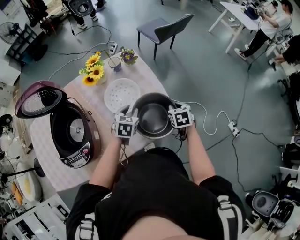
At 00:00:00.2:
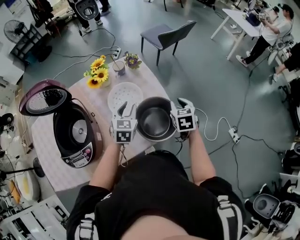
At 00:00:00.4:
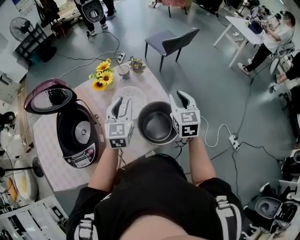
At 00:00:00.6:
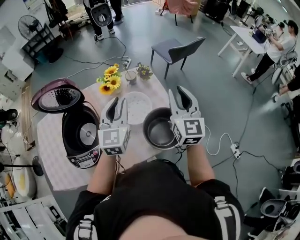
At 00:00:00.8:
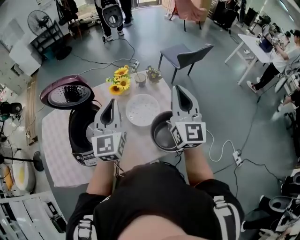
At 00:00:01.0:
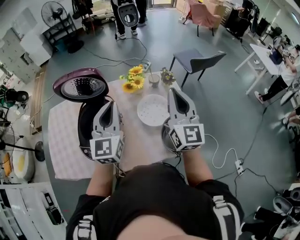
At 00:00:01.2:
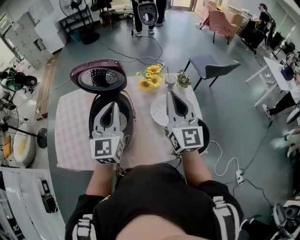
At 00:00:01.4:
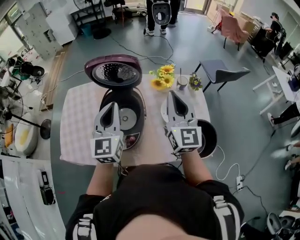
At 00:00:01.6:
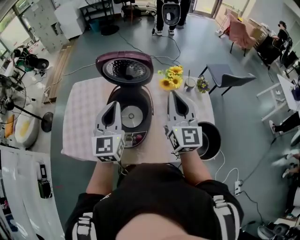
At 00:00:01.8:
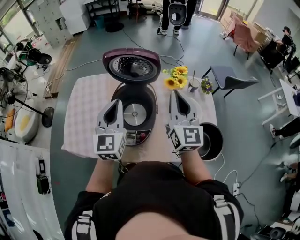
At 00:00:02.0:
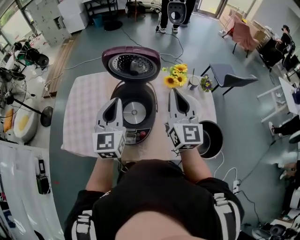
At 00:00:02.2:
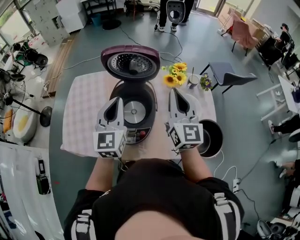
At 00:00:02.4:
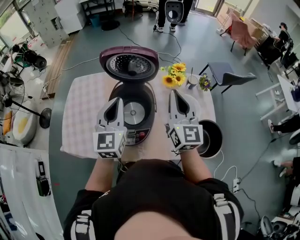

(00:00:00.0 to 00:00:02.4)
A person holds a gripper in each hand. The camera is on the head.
00:00:00.0 - 00:00:01.2: Both grippers move upward, some 35 cm. The left gripper points its fingers about 50 degrees further upward; the right gripper angles its fingers upward, by about 70 degrees.
00:00:01.2 - 00:00:02.4: The grippers both shift to the left by roughly 10 cm.

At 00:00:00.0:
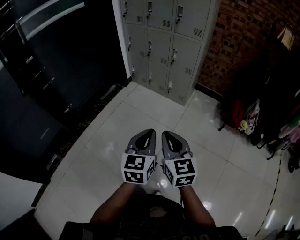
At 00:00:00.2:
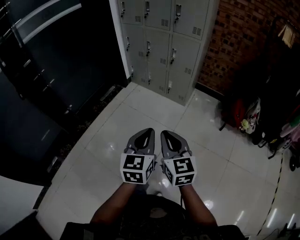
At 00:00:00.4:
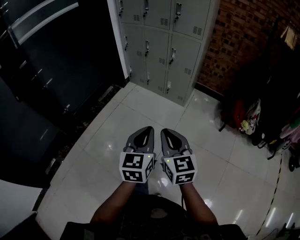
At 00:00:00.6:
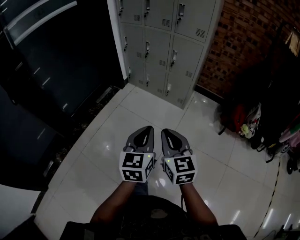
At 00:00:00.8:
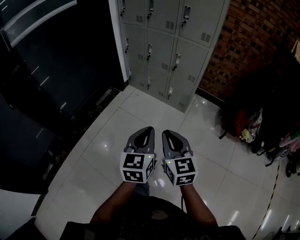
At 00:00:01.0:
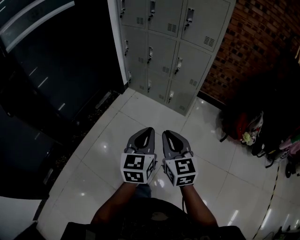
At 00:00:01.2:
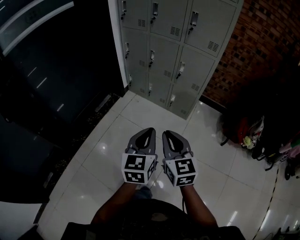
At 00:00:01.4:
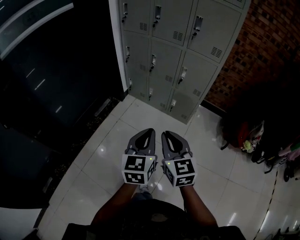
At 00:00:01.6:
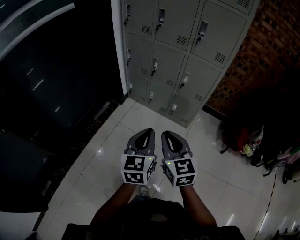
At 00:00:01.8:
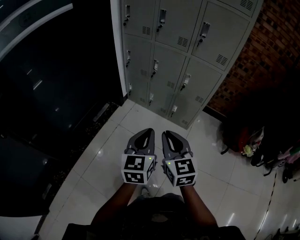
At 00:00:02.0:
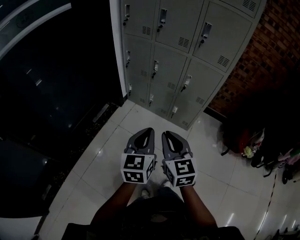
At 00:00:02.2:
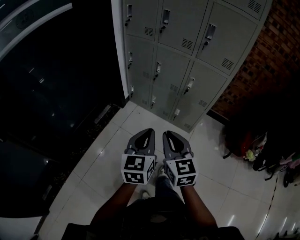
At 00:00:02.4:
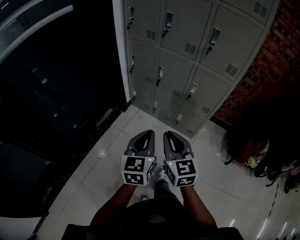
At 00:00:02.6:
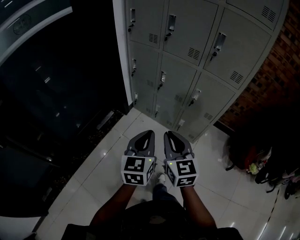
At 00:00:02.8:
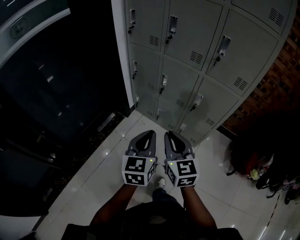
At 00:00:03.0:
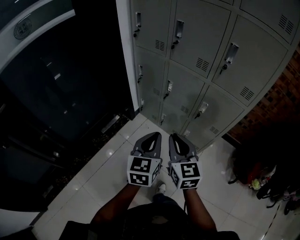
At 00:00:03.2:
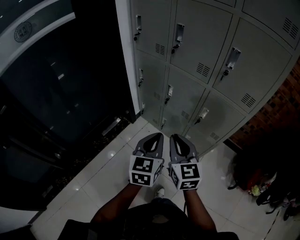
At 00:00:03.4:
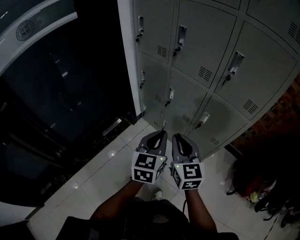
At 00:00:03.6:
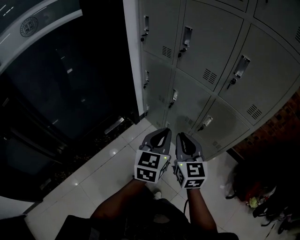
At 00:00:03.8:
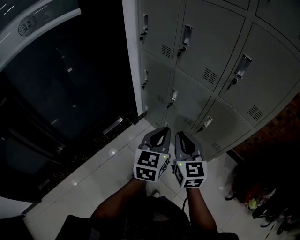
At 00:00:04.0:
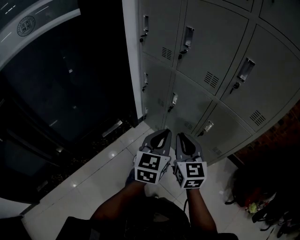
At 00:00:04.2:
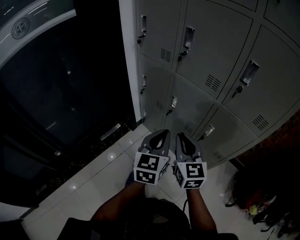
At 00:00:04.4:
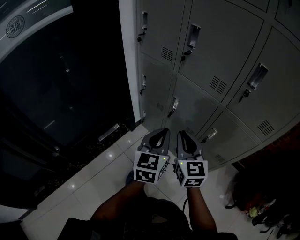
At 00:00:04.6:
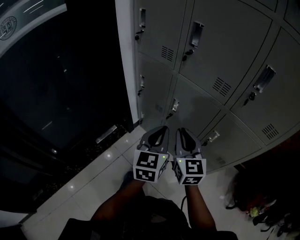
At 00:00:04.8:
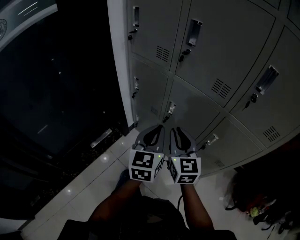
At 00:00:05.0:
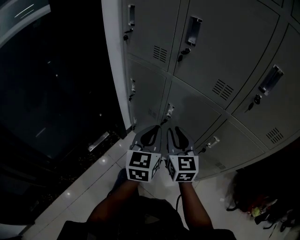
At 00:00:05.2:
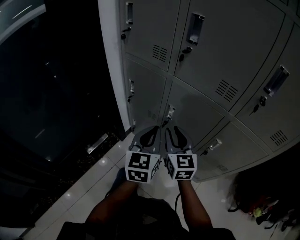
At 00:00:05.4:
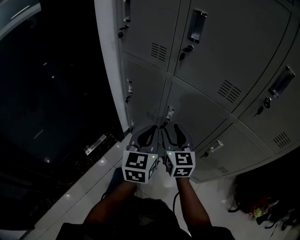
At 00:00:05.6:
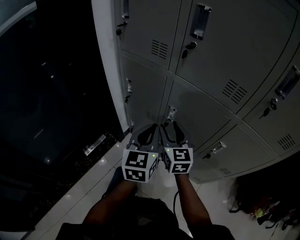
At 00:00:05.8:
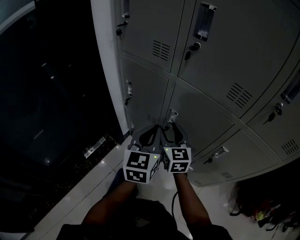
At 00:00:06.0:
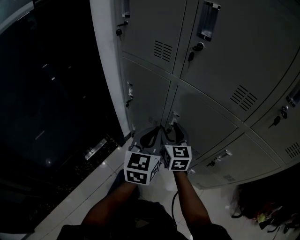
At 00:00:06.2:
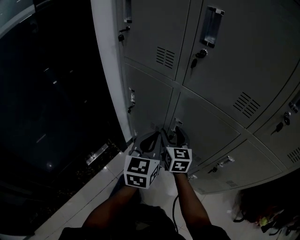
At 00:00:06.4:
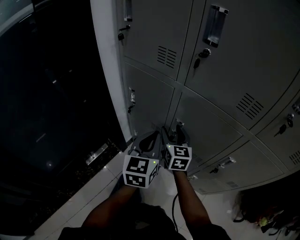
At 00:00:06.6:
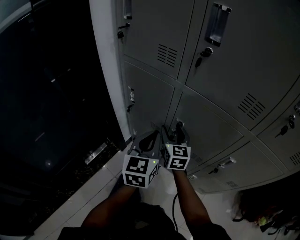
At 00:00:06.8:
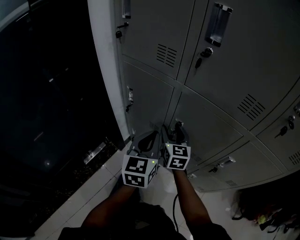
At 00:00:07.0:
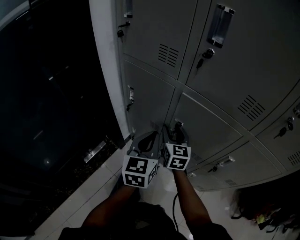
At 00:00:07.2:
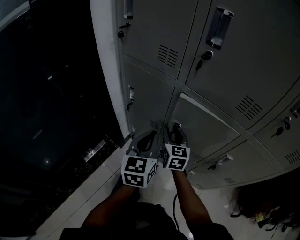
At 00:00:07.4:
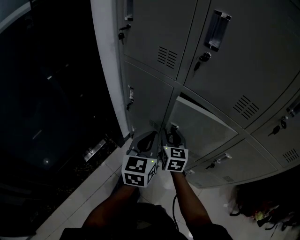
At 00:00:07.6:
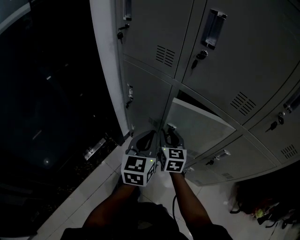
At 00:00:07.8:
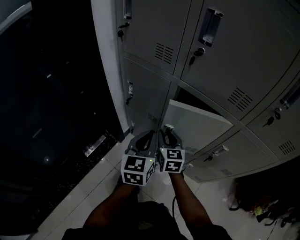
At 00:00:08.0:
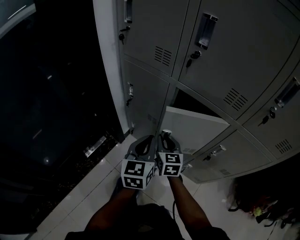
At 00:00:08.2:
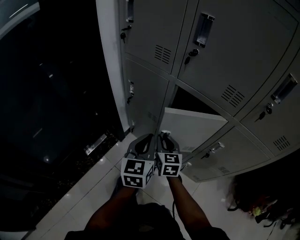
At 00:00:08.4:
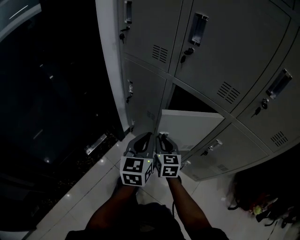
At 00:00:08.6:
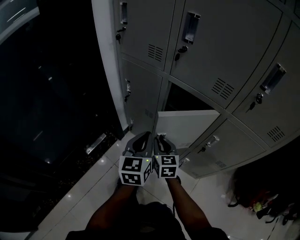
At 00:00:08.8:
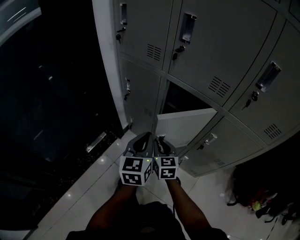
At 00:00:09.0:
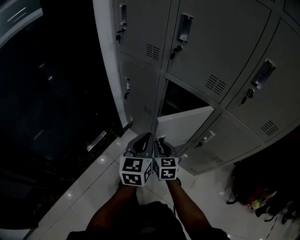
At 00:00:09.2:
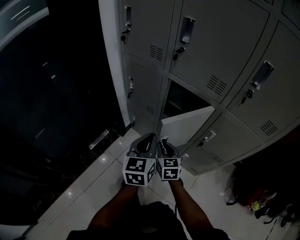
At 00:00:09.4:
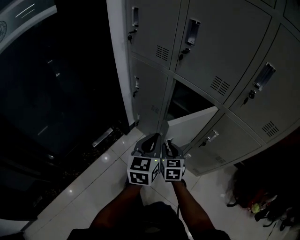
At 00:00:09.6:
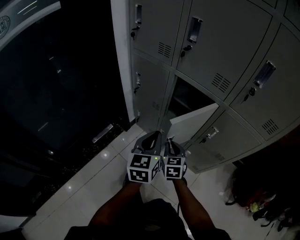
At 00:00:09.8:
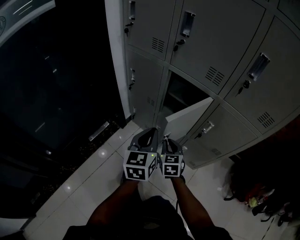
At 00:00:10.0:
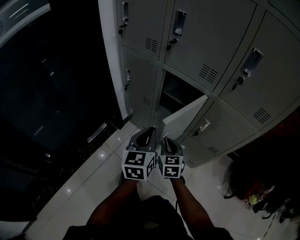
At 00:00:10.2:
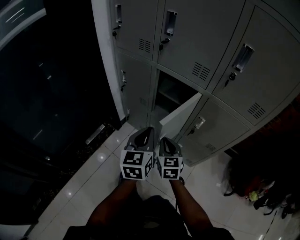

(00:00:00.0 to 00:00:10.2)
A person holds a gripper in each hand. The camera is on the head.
00:00:00.0 - 00:00:01.4: Both grippers move forward, roughly 30 cm.
00:00:01.4 - 00:00:03.0: The two grippers go approximately 30 cm forward.
00:00:03.0 - 00:00:04.4: Both grippers travel together forward, some 20 cm.
00:00:04.4 - 00:00:05.8: The two grippers go some 25 cm forward and downward. The right gripper opens.
00:00:05.8 - 00:00:07.2: The right gripper heads forward, covering about 5 cm.
00:00:07.2 - 00:00:08.8: Both grippers move backward, approximately 15 cm.
00:00:08.8 - 00:00:10.2: The right gripper travels backward and to the right by roughly 10 cm; the left gripper goes approximately 10 cm backward.

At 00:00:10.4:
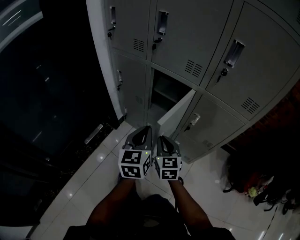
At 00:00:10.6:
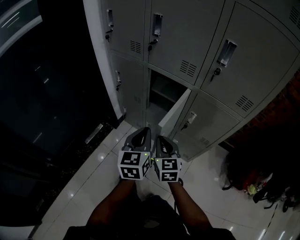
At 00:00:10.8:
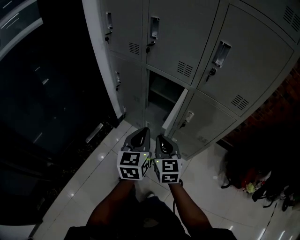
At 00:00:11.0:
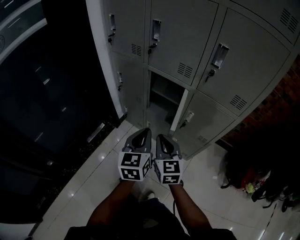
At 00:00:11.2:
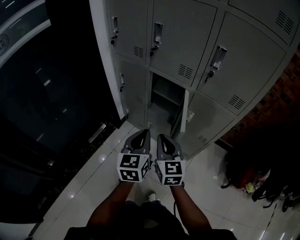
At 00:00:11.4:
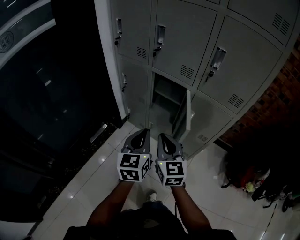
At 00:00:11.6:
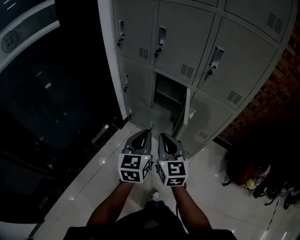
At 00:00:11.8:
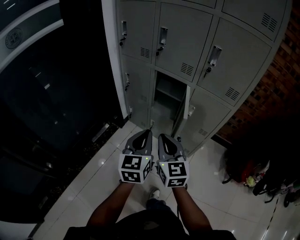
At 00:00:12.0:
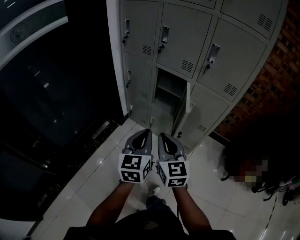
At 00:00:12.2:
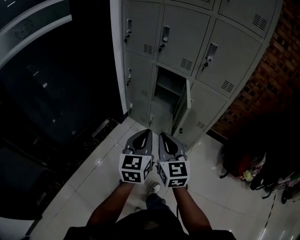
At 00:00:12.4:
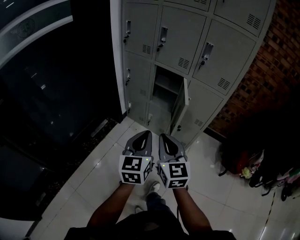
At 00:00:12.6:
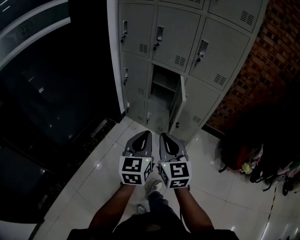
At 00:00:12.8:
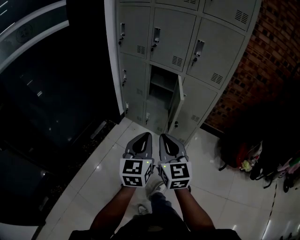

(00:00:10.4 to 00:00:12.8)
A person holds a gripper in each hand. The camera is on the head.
00:00:10.4 - 00:00:11.6: The right gripper moves upward and backward, roughly 20 cm. The left gripper travels backward and upward by some 15 cm.
00:00:11.6 - 00:00:12.8: Both grippers move backward, about 20 cm.

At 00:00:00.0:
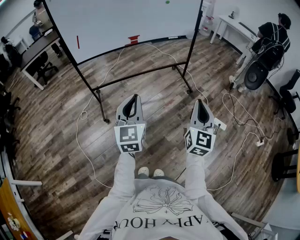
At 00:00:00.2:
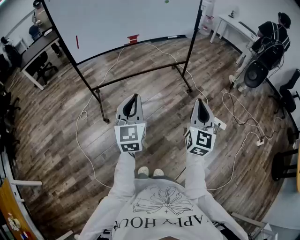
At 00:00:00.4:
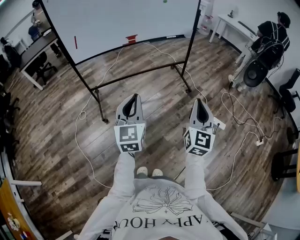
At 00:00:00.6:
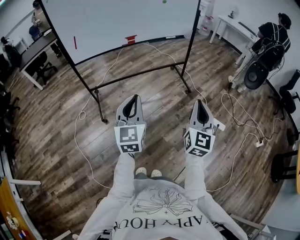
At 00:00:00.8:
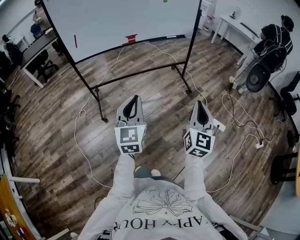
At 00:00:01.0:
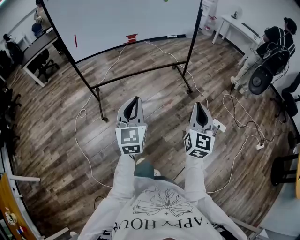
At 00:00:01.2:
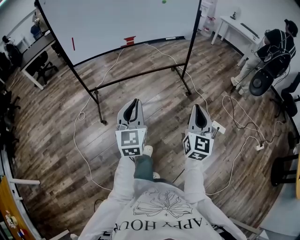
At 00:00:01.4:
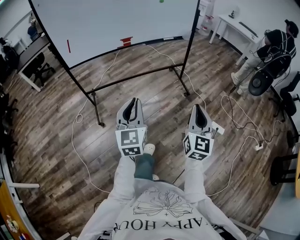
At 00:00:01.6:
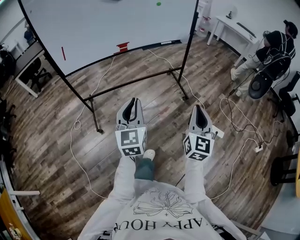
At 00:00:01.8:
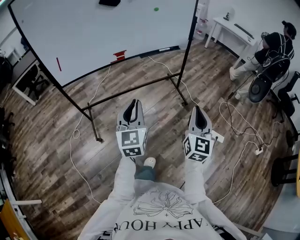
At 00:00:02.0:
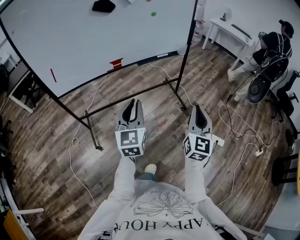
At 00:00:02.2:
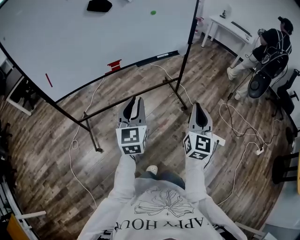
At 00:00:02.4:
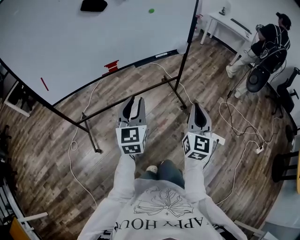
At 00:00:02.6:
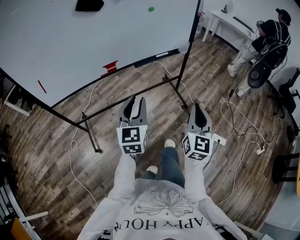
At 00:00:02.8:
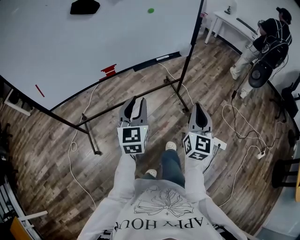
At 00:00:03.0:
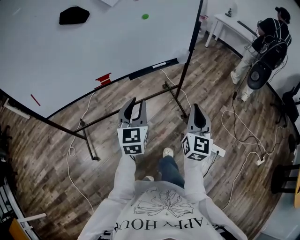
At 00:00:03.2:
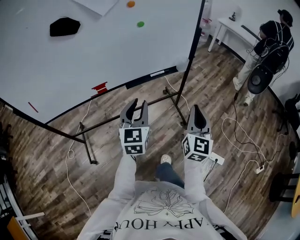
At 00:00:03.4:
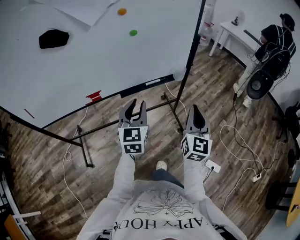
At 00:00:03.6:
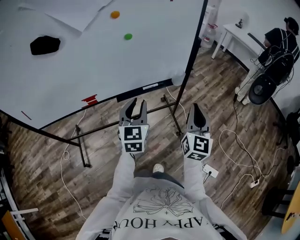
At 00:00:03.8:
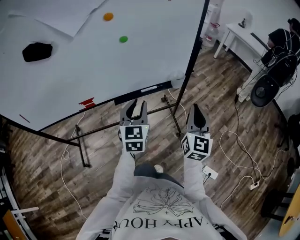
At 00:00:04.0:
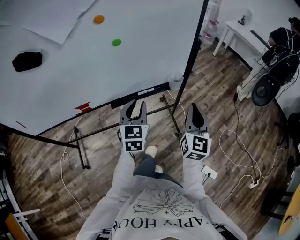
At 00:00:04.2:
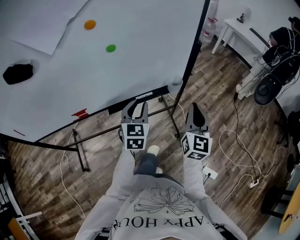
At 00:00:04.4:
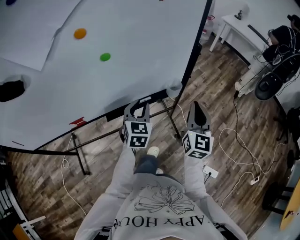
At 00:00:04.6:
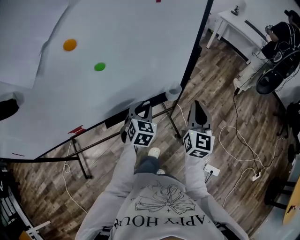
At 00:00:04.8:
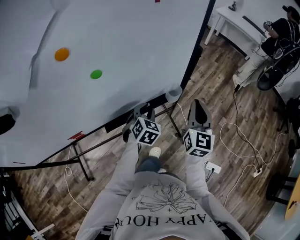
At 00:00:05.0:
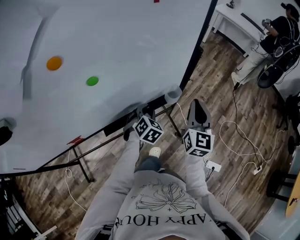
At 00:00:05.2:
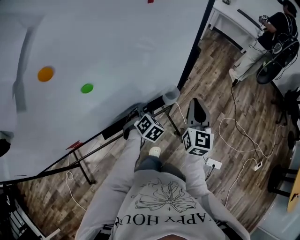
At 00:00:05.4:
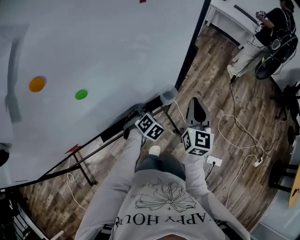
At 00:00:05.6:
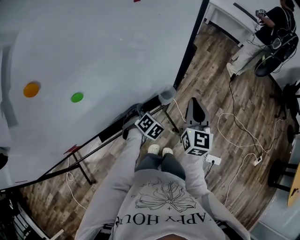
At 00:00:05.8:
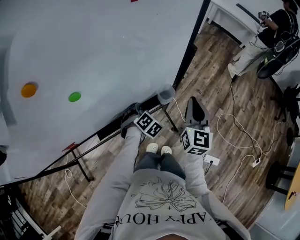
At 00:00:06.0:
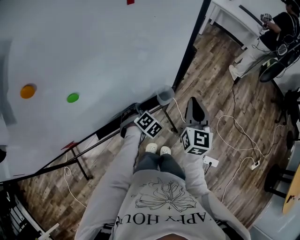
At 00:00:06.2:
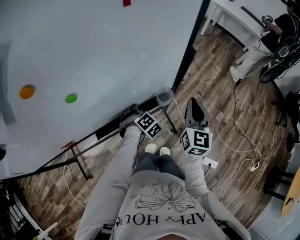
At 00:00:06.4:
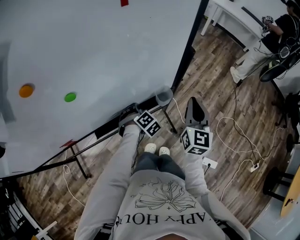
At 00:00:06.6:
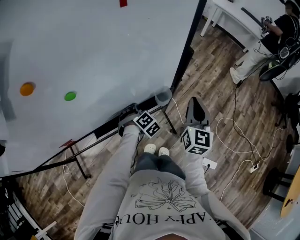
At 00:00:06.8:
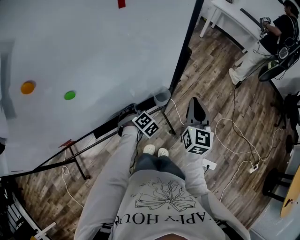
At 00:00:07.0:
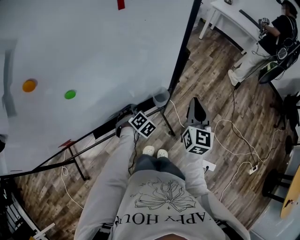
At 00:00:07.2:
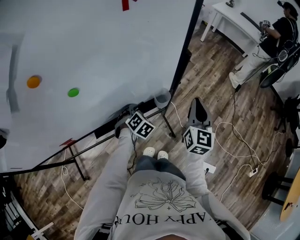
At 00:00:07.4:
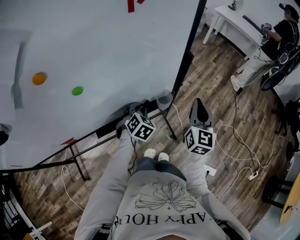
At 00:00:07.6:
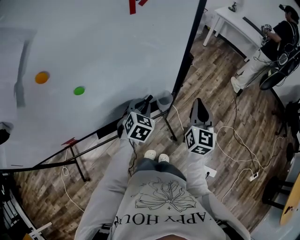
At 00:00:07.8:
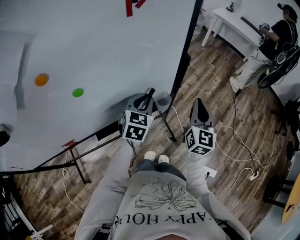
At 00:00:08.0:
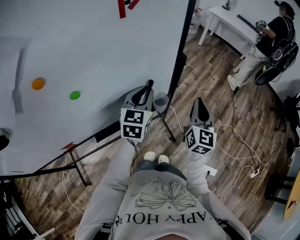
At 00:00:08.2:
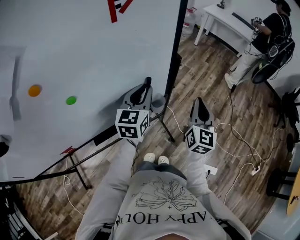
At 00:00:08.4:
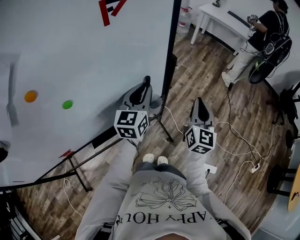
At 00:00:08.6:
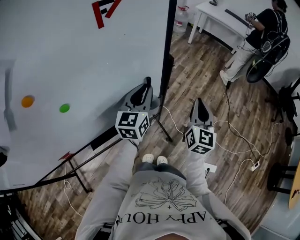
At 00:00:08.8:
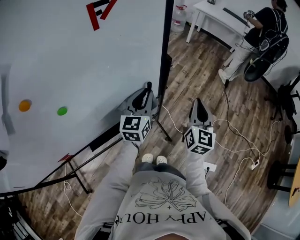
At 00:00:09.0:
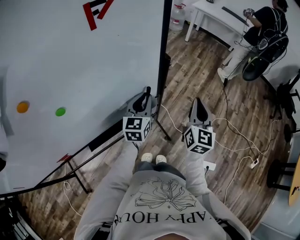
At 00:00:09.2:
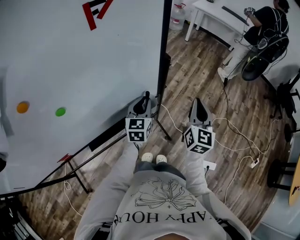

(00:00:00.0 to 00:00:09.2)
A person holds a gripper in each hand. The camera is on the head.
00:00:00.0 - 00:00:01.6: The grippers both shift forward by about 15 cm.
00:00:01.6 - 00:00:03.0: Both grippers move forward, roughly 35 cm.
00:00:03.0 - 00:00:04.6: The grippers both shift forward by about 40 cm. The left gripper rotates about 30 degrees.
00:00:04.6 - 00:00:06.2: The right gripper moves forward, about 10 cm. Meanwhile the left gripper goes some 15 cm downward and forward, and rotates about 40 degrees.
00:00:06.2 - 00:00:07.6: The left gripper moves upward, roughly 15 cm, and changes its angle by about 40 degrees.
00:00:07.6 - 00:00:09.2: The right gripper is displaced to the right by some 5 cm. The left gripper heads to the right and forward, covering approximately 10 cm, travels upward and back again, roughly 10 cm each way, and turns by some 30 degrees.
